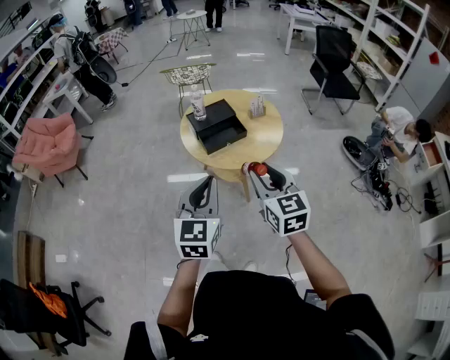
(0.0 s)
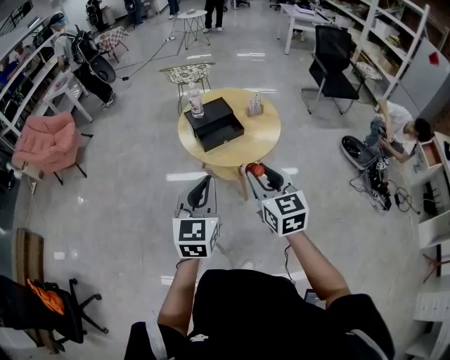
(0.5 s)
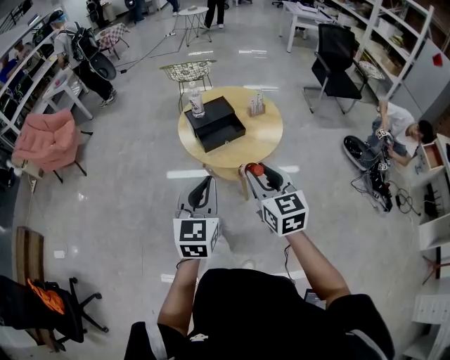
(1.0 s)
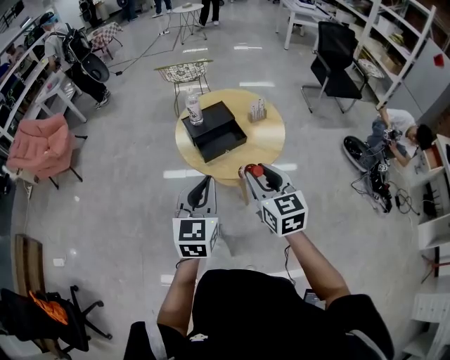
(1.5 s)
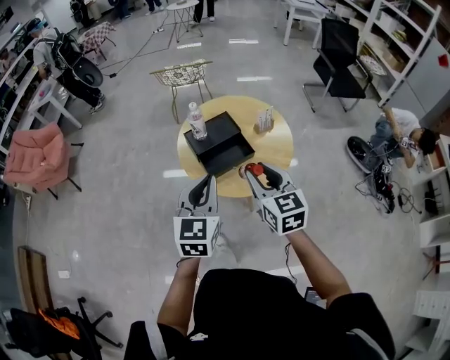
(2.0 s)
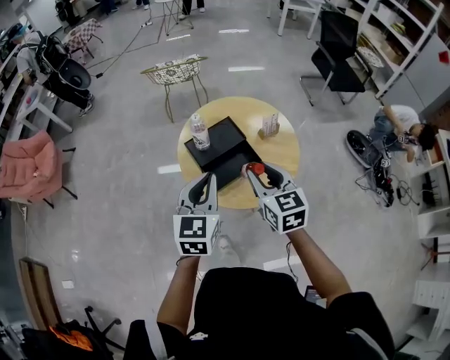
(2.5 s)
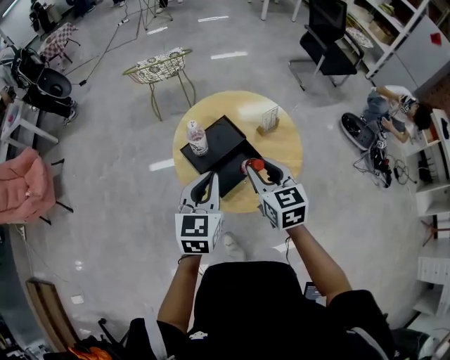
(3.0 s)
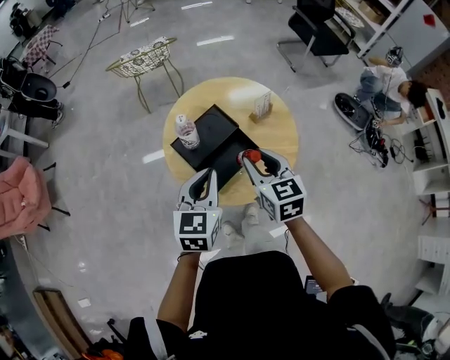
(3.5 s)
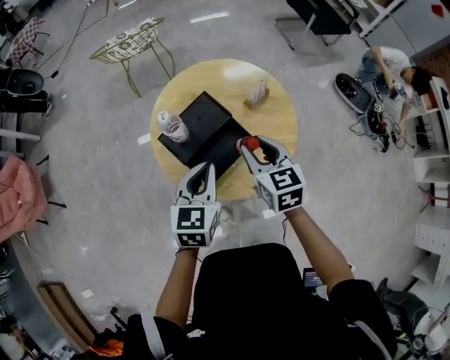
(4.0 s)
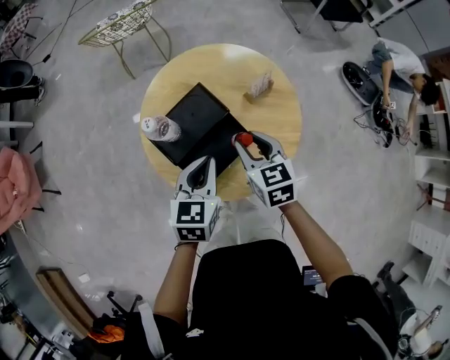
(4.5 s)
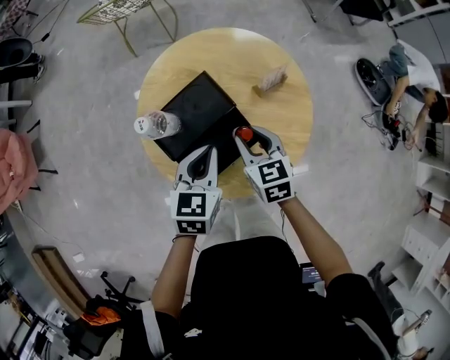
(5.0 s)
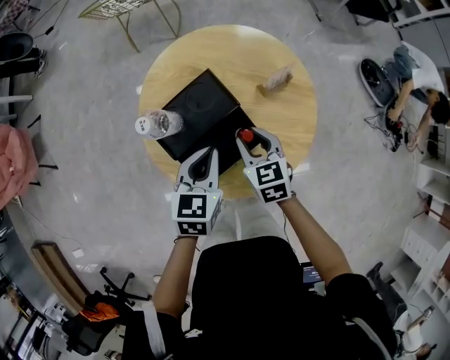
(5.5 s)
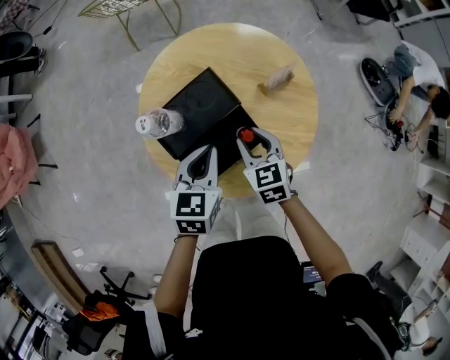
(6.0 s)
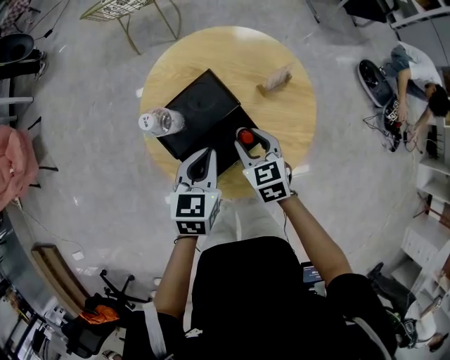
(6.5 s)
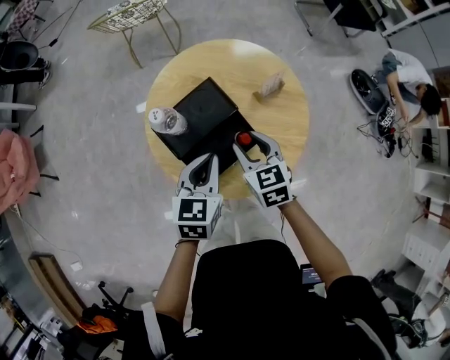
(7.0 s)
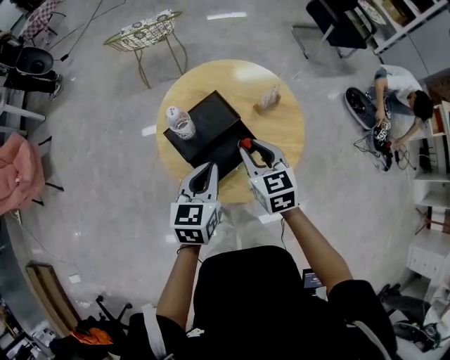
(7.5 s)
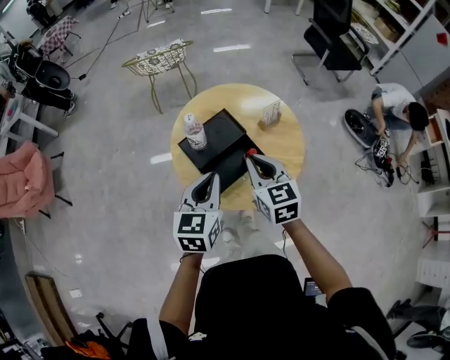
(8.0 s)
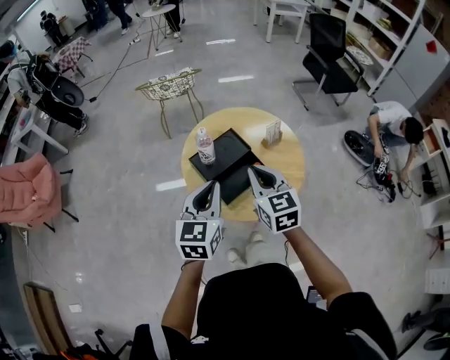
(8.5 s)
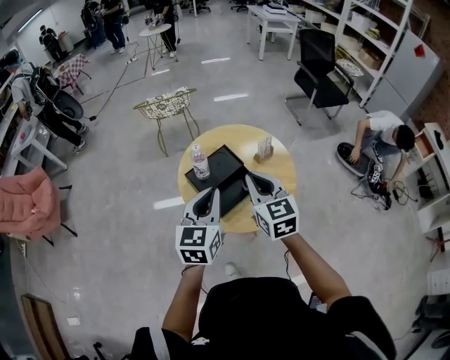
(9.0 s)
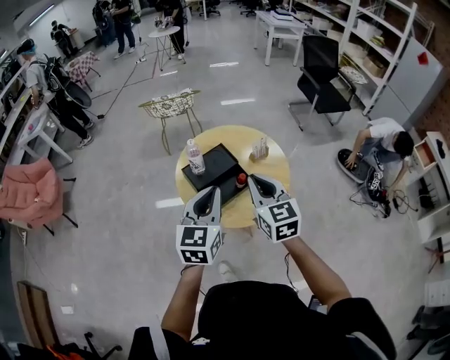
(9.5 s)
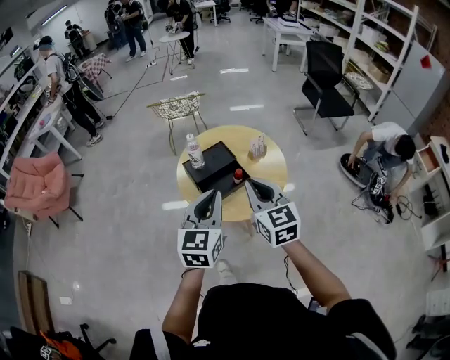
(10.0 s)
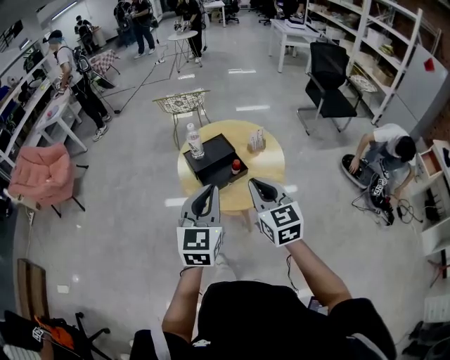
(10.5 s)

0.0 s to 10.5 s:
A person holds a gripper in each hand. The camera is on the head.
0.0 to 2.0 s: Both grippers travel together forward, approximately 20 cm.
2.0 to 4.0 s: The grippers both shift forward and downward by about 25 cm. The left gripper rotates about 20 degrees.
4.0 to 6.5 s: The right gripper heads downward, covering about 15 cm, while the left gripper goes about 10 cm downward and forward.
6.5 to 8.5 s: Both grippers travel together upward and backward, about 25 cm. The right gripper rotates roughly 30 degrees, and closes its fingers; the left gripper turns by about 20 degrees.
8.5 to 10.5 s: Both grippers travel together backward, to the right and upward, approximately 20 cm.

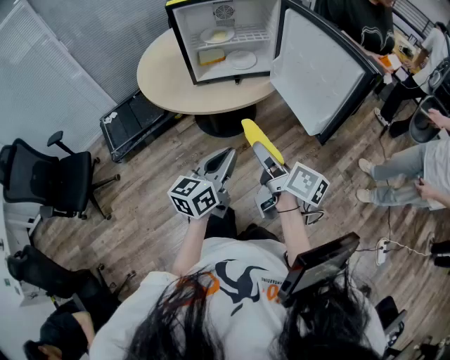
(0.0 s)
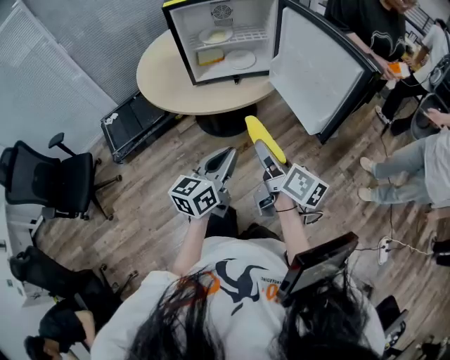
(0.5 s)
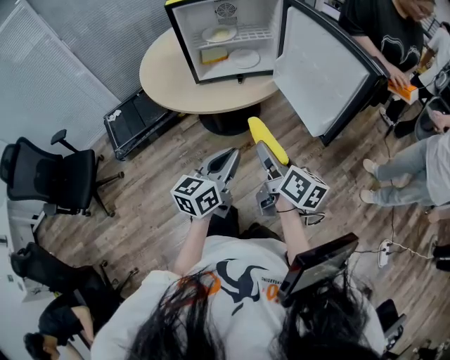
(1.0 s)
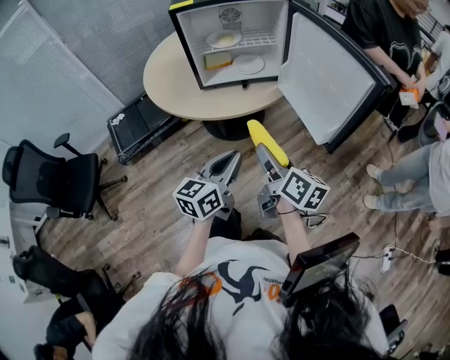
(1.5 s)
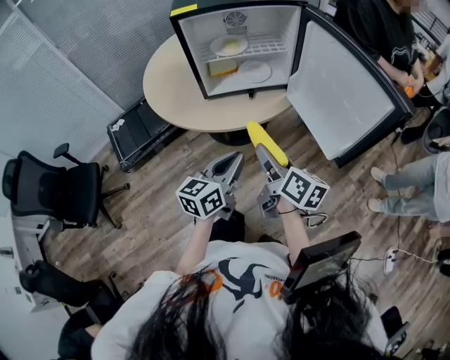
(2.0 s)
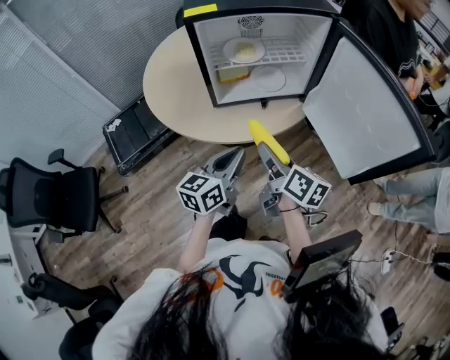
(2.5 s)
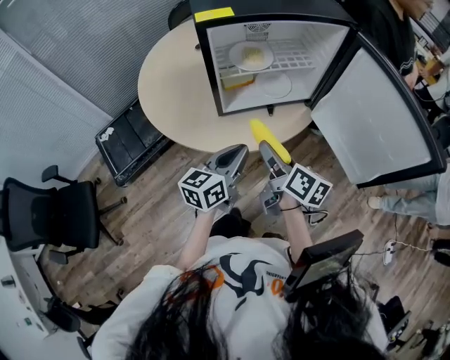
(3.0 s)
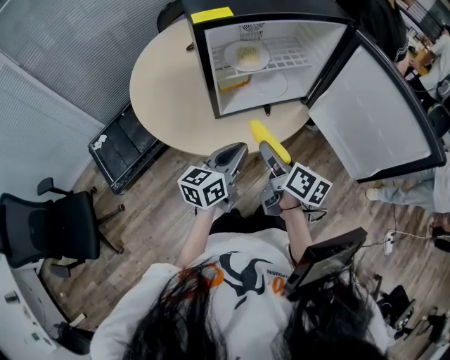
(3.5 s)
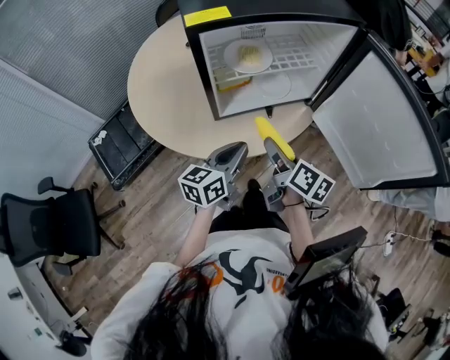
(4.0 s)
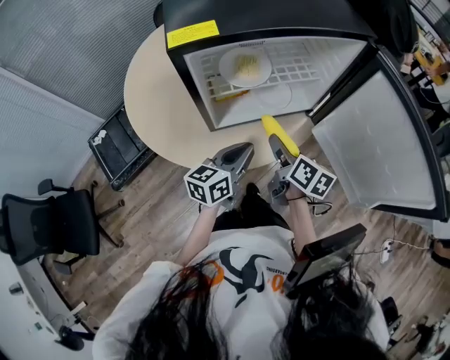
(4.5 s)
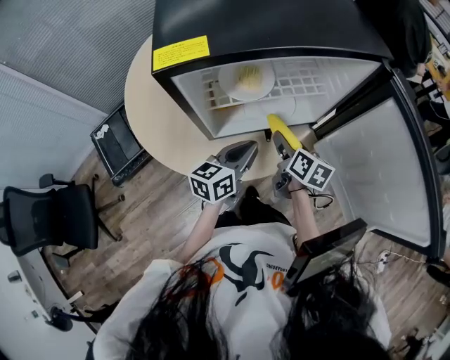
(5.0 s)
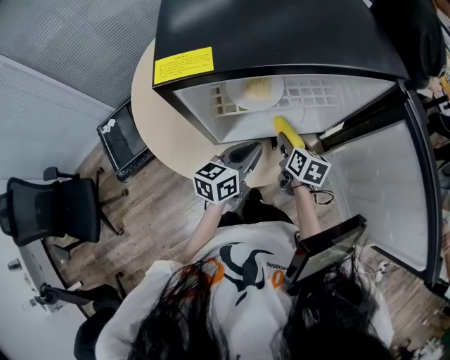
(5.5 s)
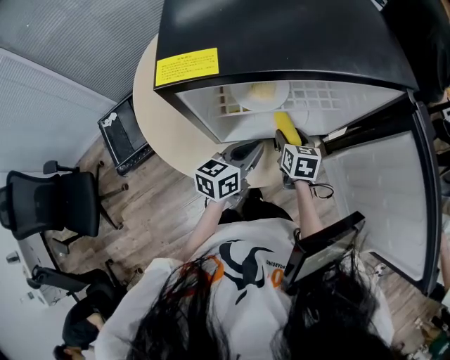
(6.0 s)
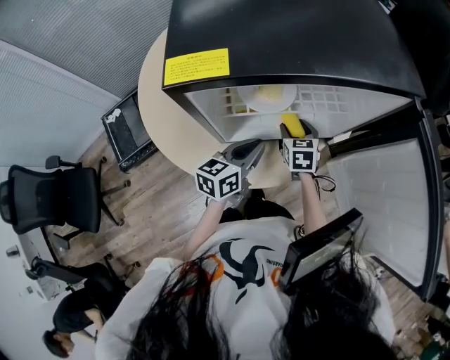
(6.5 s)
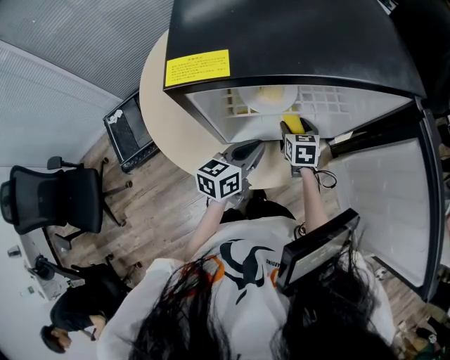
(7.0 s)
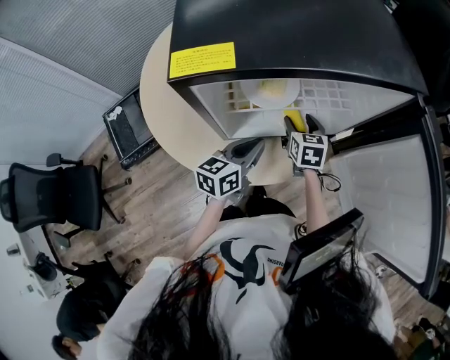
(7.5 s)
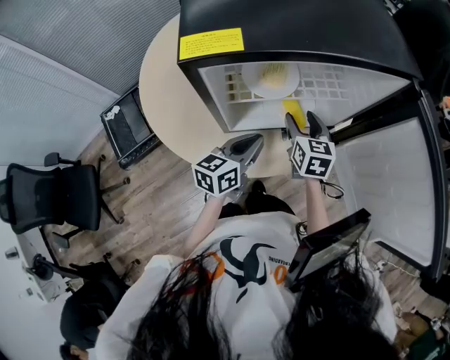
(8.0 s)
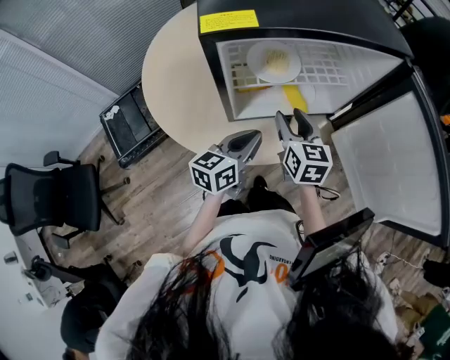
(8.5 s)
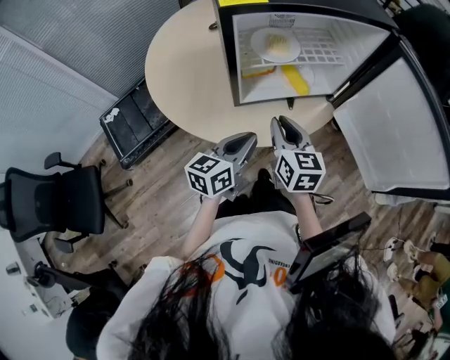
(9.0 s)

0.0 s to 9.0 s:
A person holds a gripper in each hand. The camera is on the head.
0.0 to 2.0 s: The two grippers go roughly 10 cm forward.
2.0 to 4.5 s: The left gripper heads forward and to the left, covering roughly 25 cm; the right gripper heads forward, covering approximately 25 cm.
4.5 to 7.0 s: The left gripper heads forward, covering about 10 cm. Meanwhile the right gripper travels forward and downward by approximately 20 cm, and rotates around the line of its fingers by about 40 degrees, counterclockwise from behind.
7.0 to 9.0 s: The left gripper is displaced backward by approximately 15 cm. The right gripper is displaced backward and upward by some 25 cm, swivels some 20 degrees, and closes its fingers.

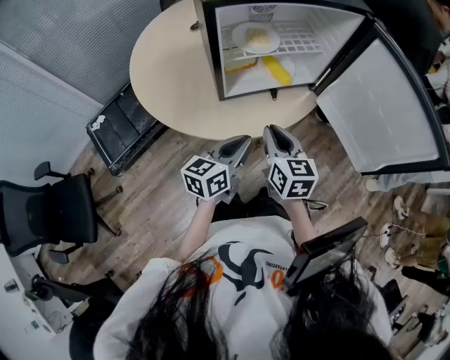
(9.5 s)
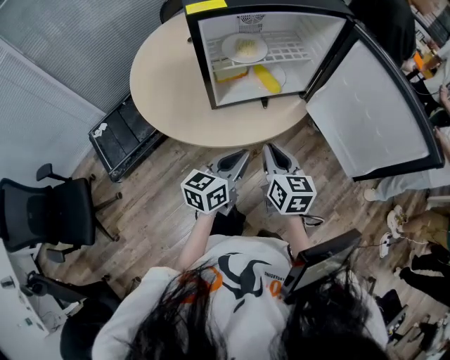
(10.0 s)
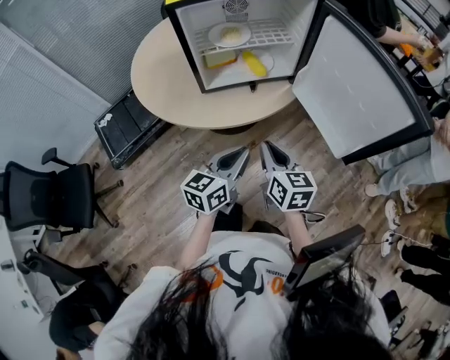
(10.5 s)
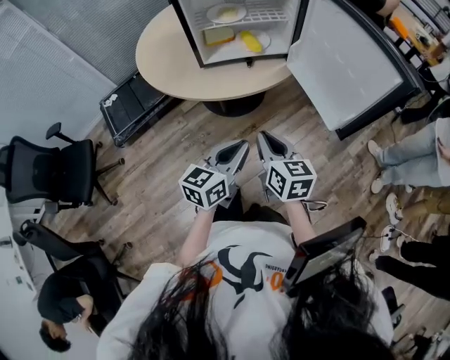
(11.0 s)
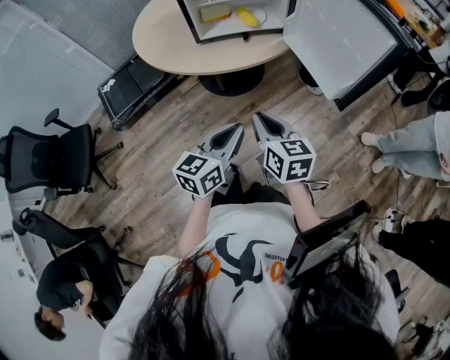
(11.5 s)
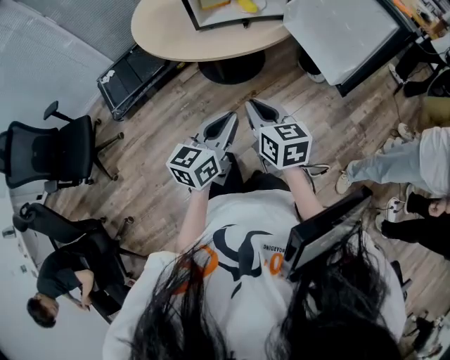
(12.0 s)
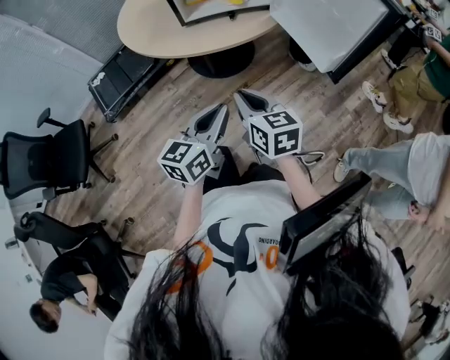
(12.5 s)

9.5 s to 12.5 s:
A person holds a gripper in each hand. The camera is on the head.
9.5 to 11.0 s: Both grippers move backward and to the right, approximately 25 cm.
11.0 to 12.5 s: The grippers both shift backward by some 5 cm.

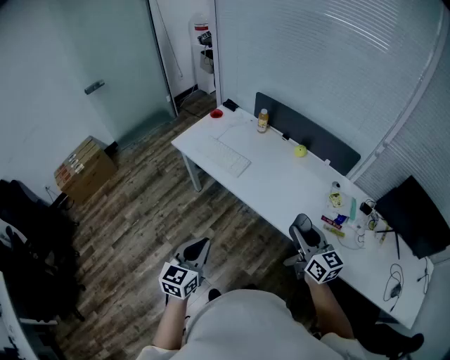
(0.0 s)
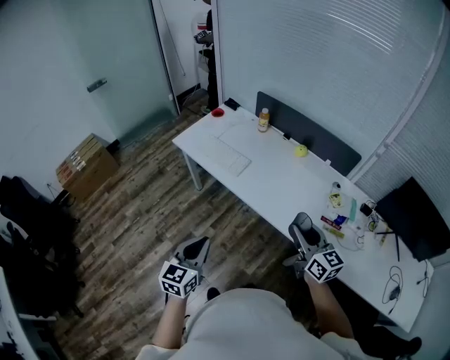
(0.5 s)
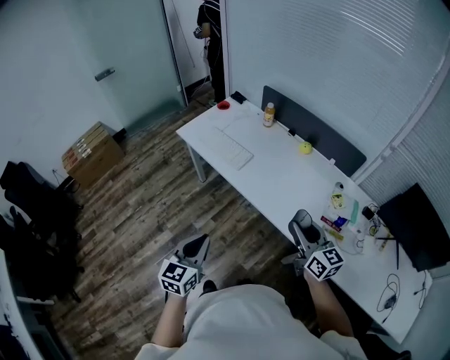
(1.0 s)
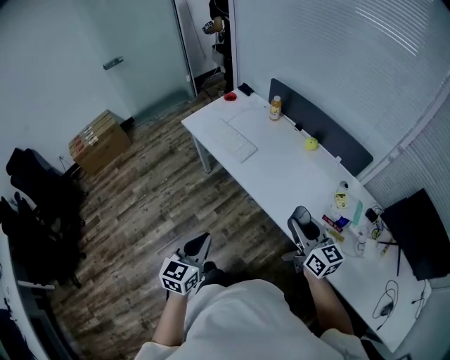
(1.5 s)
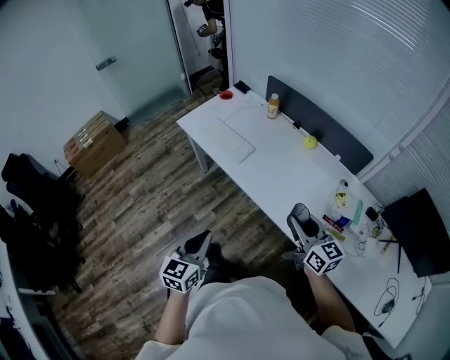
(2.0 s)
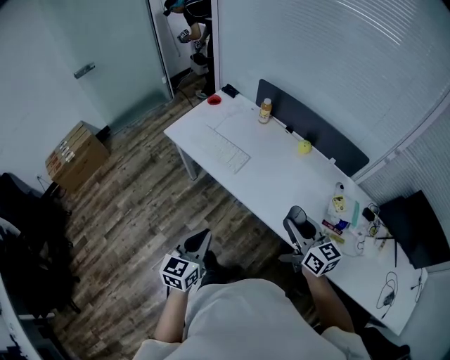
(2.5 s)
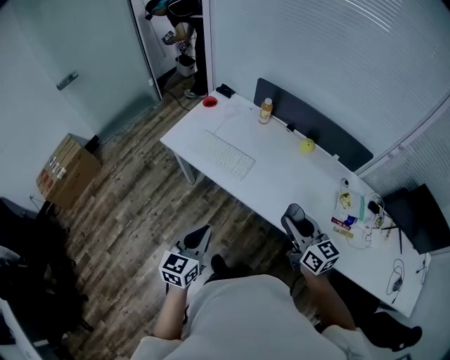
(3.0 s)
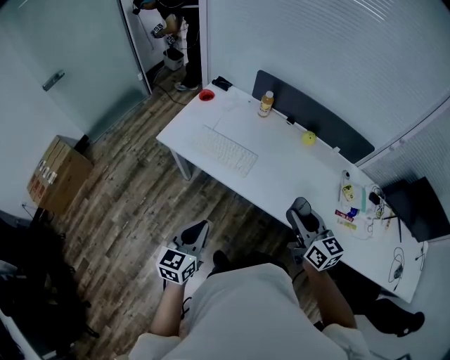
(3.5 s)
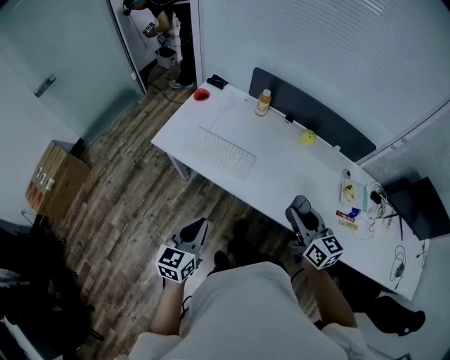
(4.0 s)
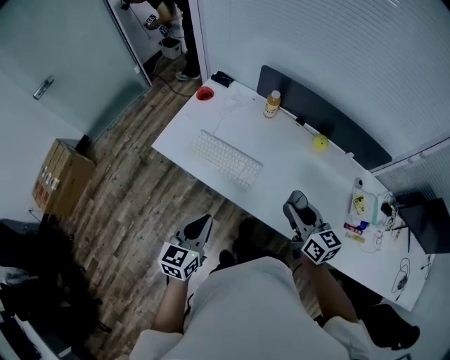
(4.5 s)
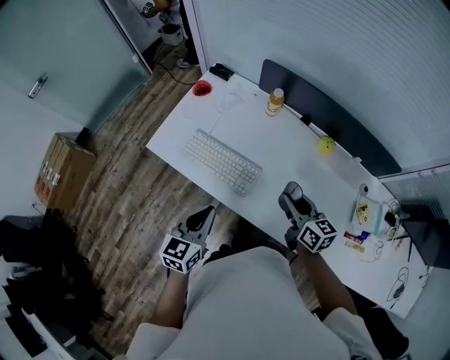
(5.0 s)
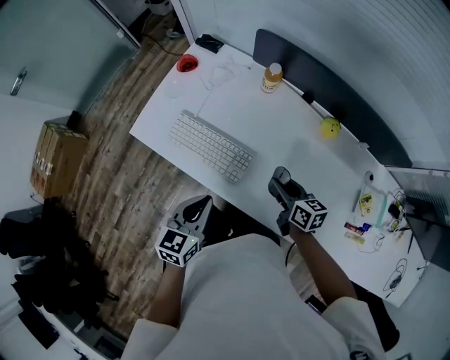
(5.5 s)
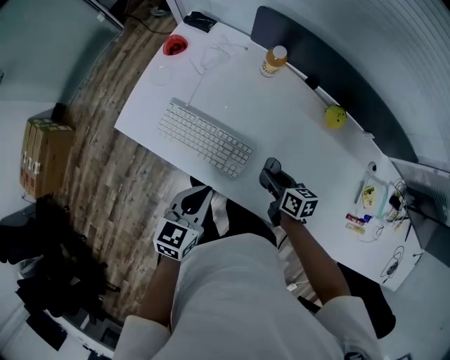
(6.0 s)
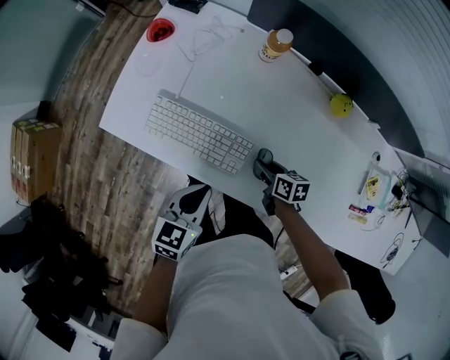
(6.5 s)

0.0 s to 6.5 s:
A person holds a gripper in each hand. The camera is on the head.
0.0 to 2.0 s: The right gripper shifts by some 5 cm; the left gripper goes about 5 cm to the right.
2.0 to 4.5 s: The two grippers go some 30 cm forward and to the left.
4.5 to 6.5 s: The right gripper goes approximately 30 cm downward, and angles its fingers downward, by approximately 30 degrees. The left gripper goes approximately 20 cm downward and forward, and swivels roughly 20 degrees.
